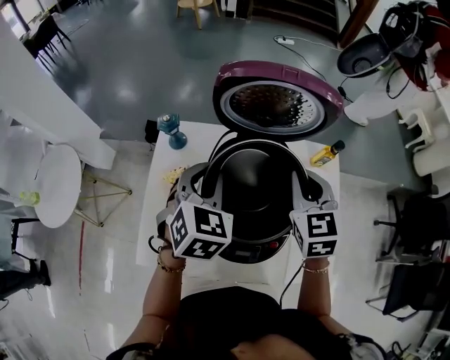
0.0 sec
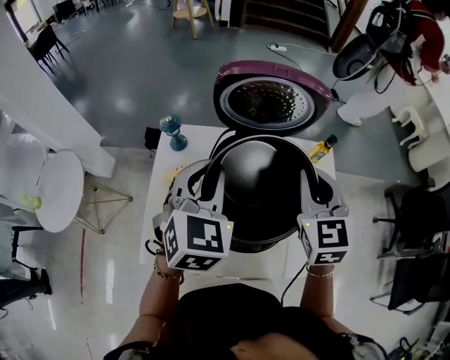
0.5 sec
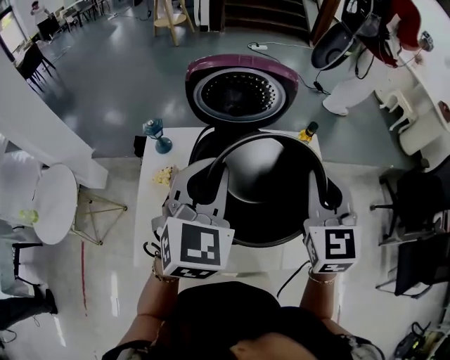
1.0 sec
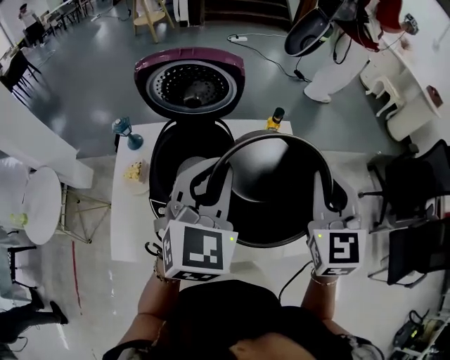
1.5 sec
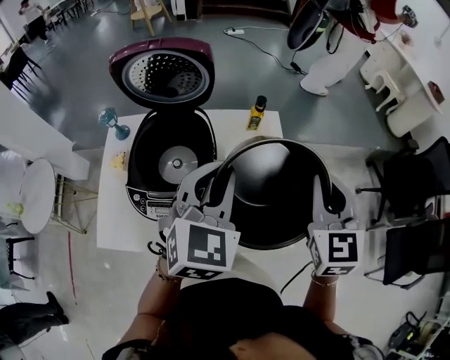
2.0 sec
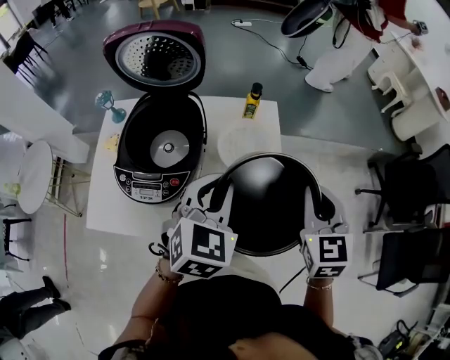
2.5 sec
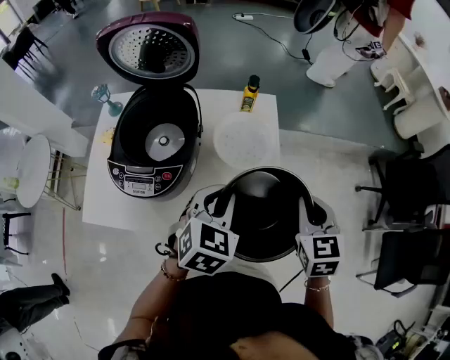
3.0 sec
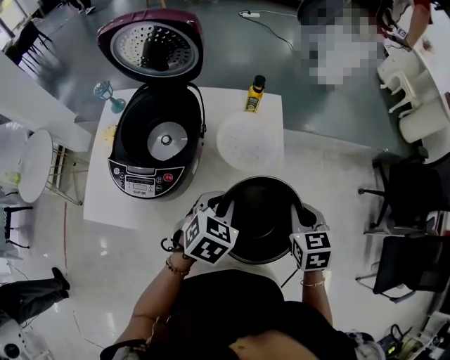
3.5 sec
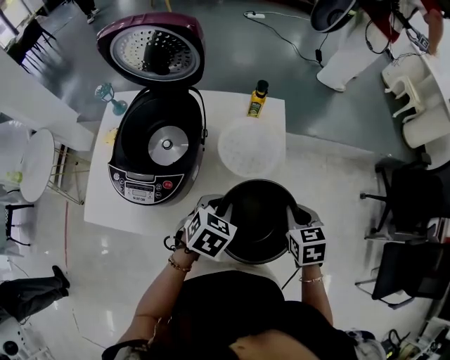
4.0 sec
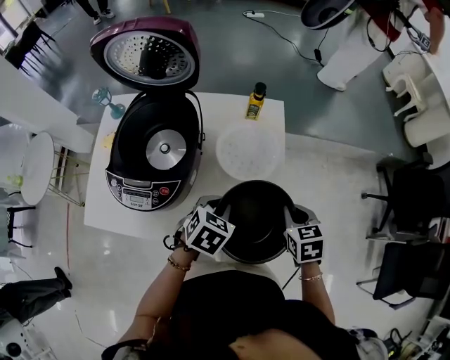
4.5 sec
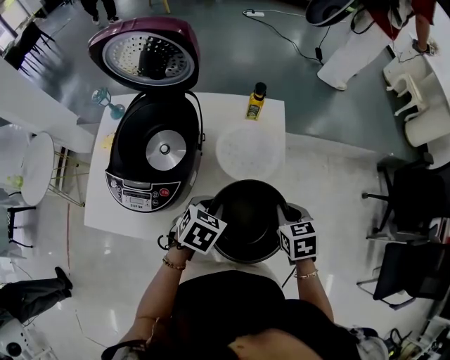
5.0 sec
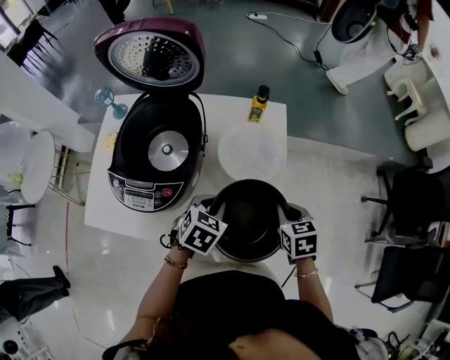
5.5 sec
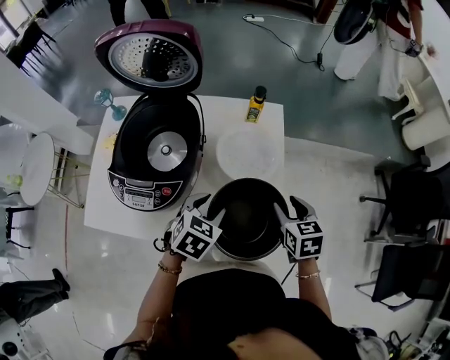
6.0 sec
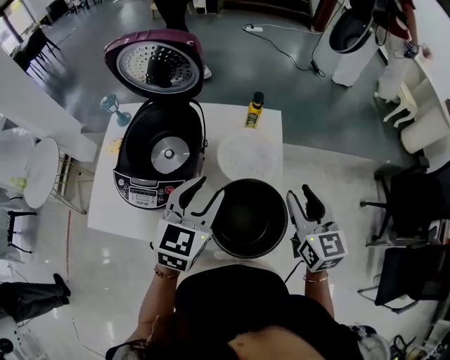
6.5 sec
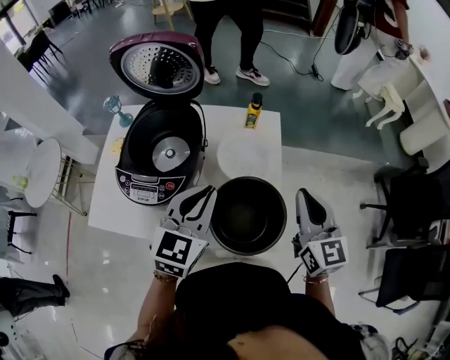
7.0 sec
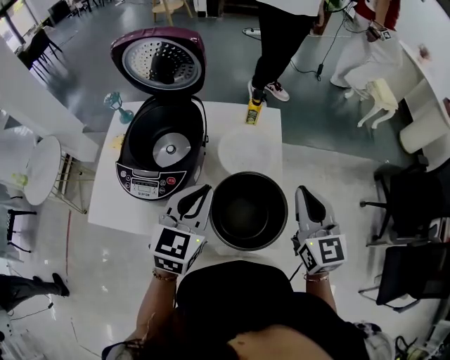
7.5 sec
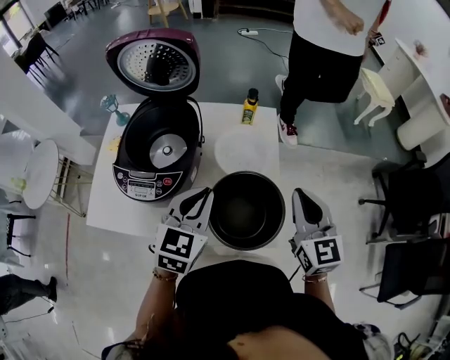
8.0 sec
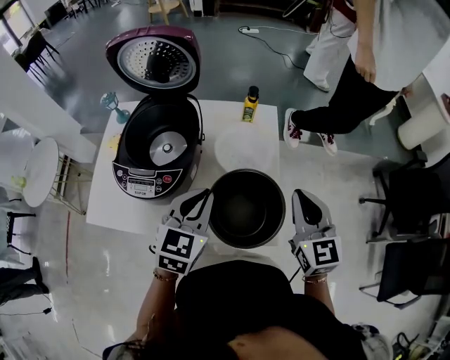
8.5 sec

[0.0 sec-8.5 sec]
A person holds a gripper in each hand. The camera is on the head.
0.0 sec to 2.0 sec: The right gripper moves to the right and backward, roughly 30 cm, while the left gripper is displaced to the right by approximately 25 cm.
2.0 sec to 4.0 sec: The grippers both shift downward by some 25 cm. The left gripper points its fingers some 30 degrees further downward, while the right gripper points its fingers some 30 degrees further downward.
4.0 sec to 6.5 sec: The two grippers go about 15 cm upward. The right gripper tips its fingers upward by some 30 degrees, and opens its fingers; the left gripper points its fingers approximately 30 degrees further upward.
6.5 sec to 8.5 sec: The left gripper ends up roughly 5 cm from where it was, and closes its fingers, while the right gripper closes up.

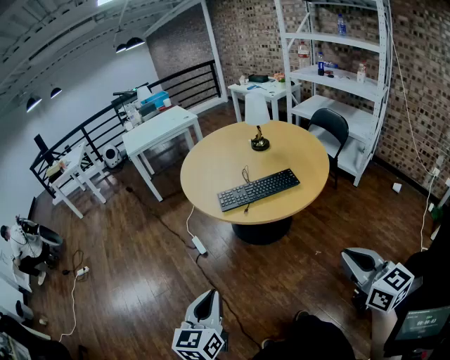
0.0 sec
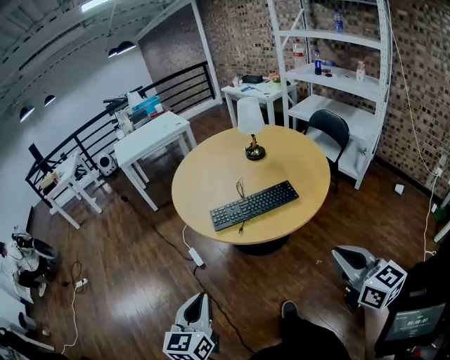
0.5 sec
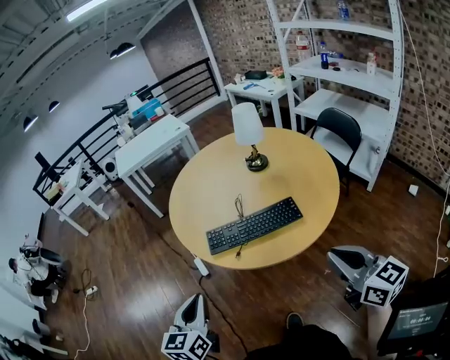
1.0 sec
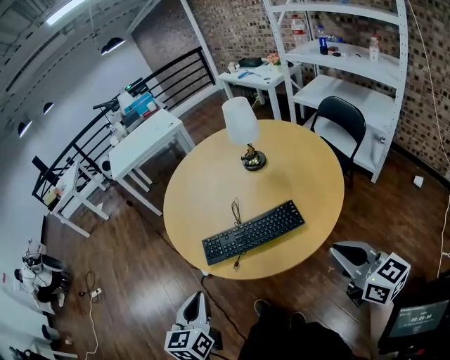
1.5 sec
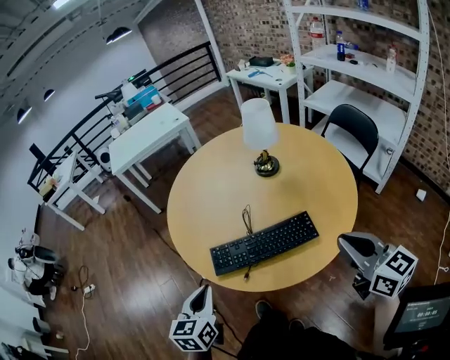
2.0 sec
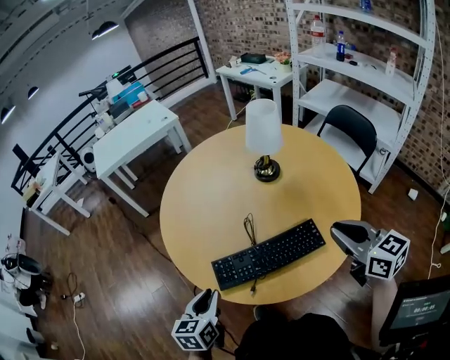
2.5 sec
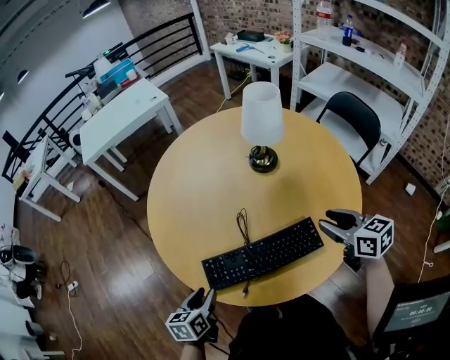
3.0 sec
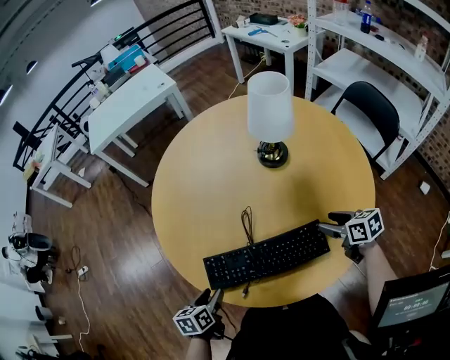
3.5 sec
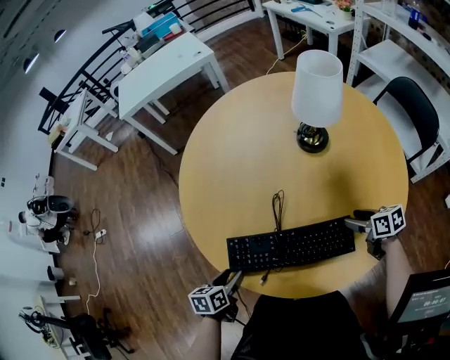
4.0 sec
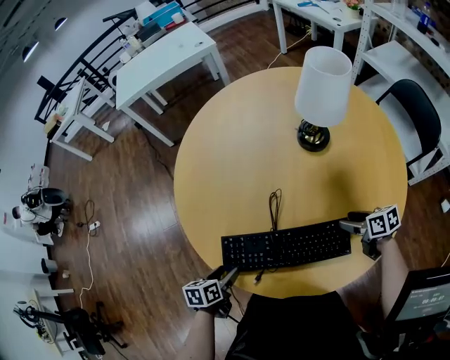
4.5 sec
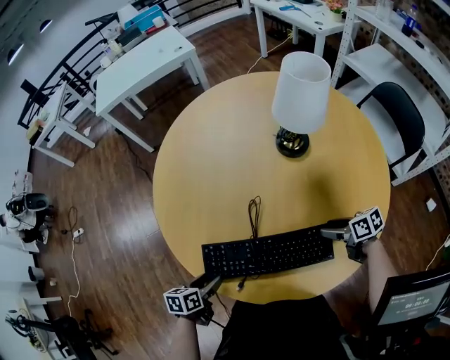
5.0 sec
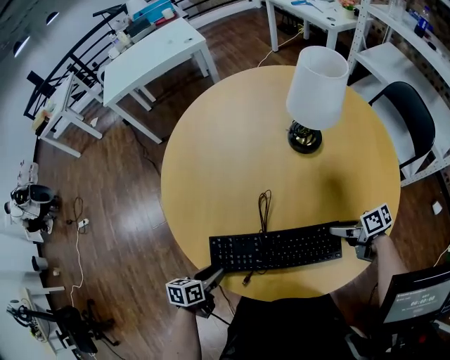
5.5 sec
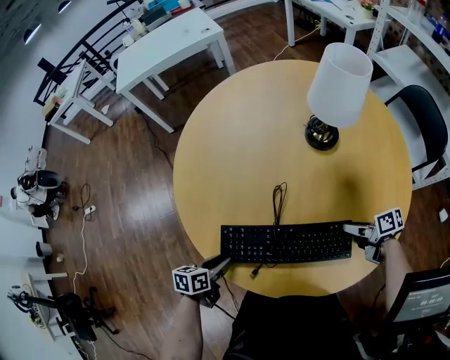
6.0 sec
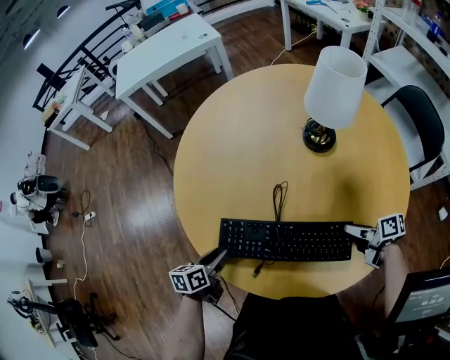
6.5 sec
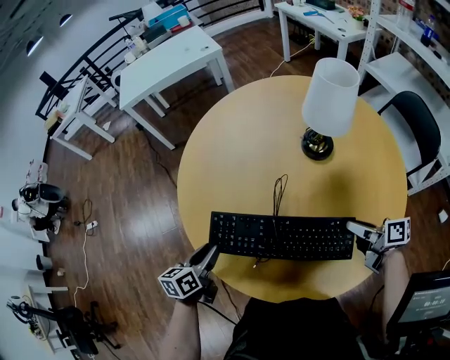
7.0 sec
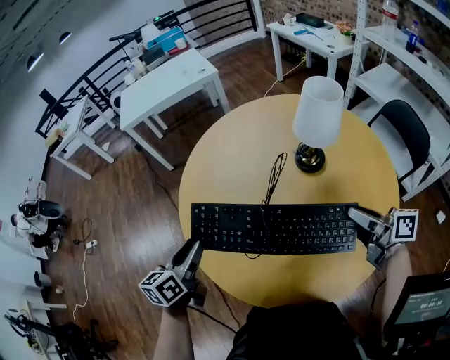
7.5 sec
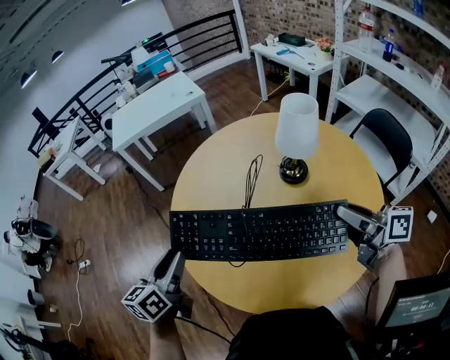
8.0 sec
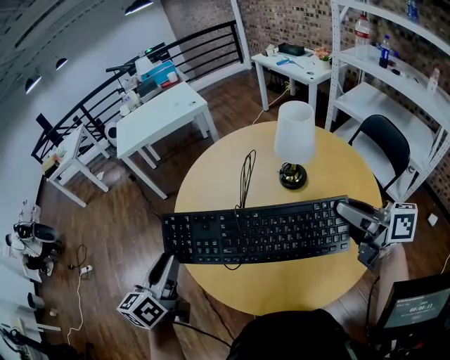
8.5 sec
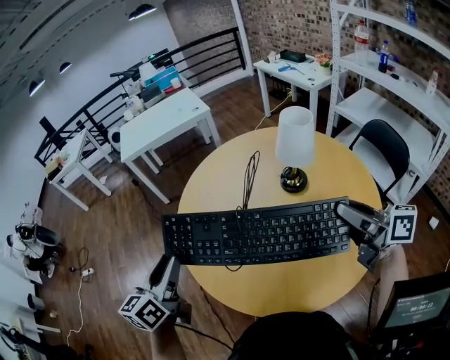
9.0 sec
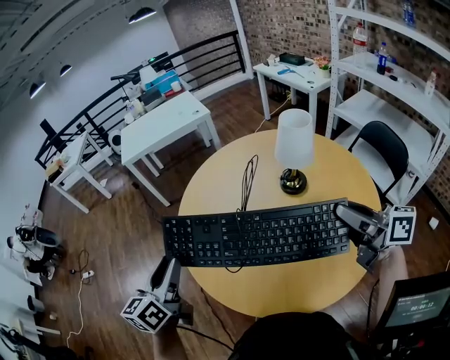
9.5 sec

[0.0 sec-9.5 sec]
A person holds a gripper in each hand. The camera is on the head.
0.0 sec to 2.0 sec: Both grippers are carried forward, about 40 cm.
2.0 sec to 4.0 sec: The right gripper shifts about 40 cm downward and forward, tips its fingers downward by roughly 30 degrees, and opens; the left gripper travels downward and forward by approximately 25 cm, rotates about 40 degrees, and opens its fingers.
4.0 sec to 5.5 sec: The right gripper swivels roughly 20 degrees.
5.5 sec to 7.5 sec: The right gripper travels upward by approximately 25 cm, and turns by about 30 degrees. The left gripper goes some 25 cm upward and forward, and changes its angle by roughly 30 degrees.
7.5 sec to 9.5 sec: The right gripper moves upward, some 15 cm. Meanwhile the left gripper heads upward and backward, covering about 15 cm.

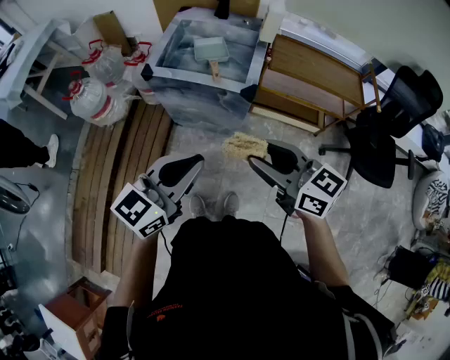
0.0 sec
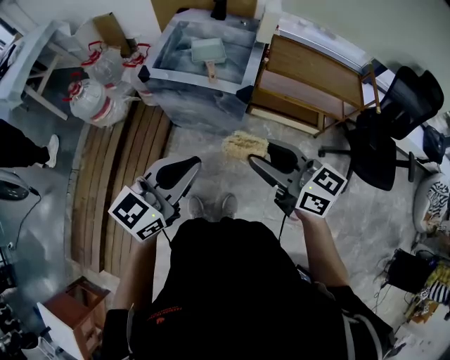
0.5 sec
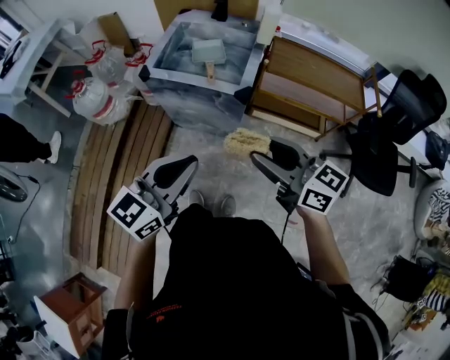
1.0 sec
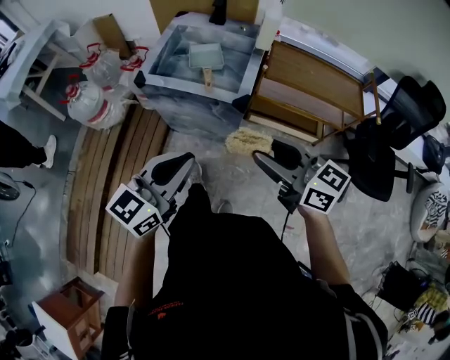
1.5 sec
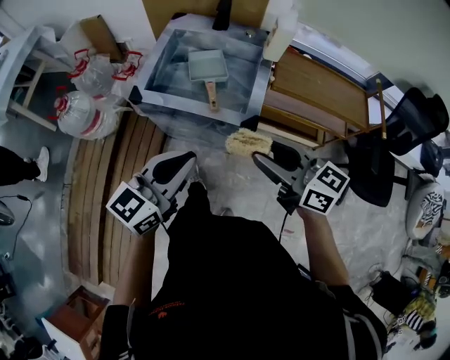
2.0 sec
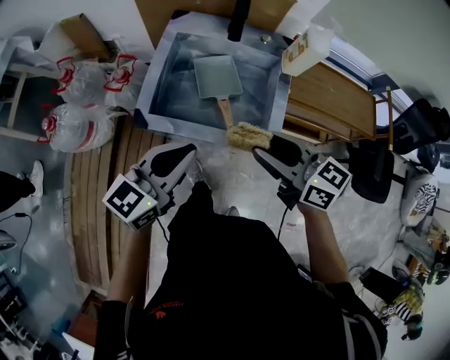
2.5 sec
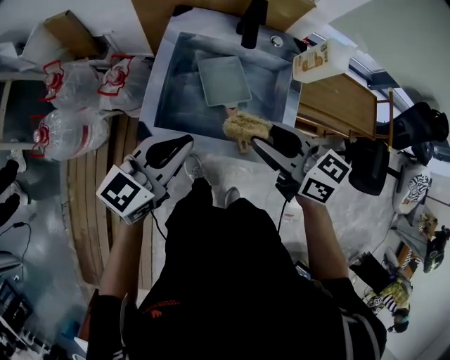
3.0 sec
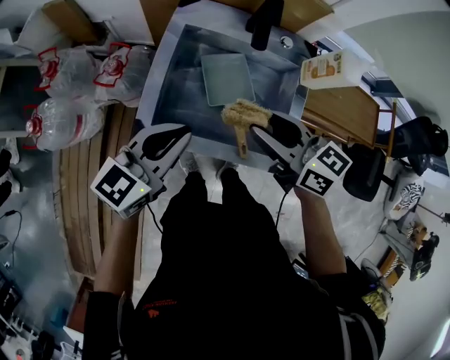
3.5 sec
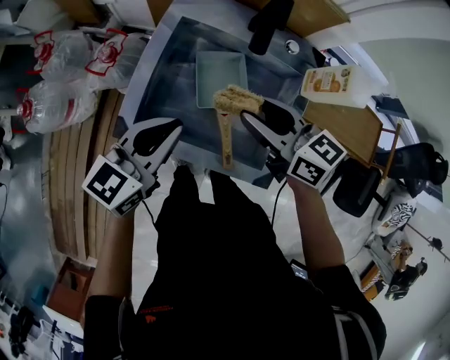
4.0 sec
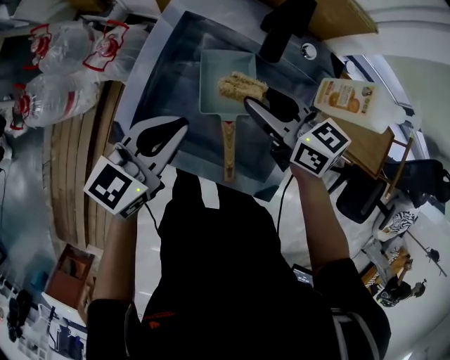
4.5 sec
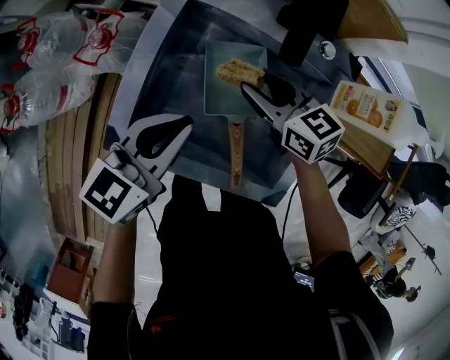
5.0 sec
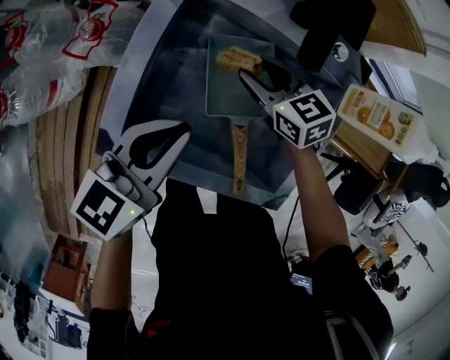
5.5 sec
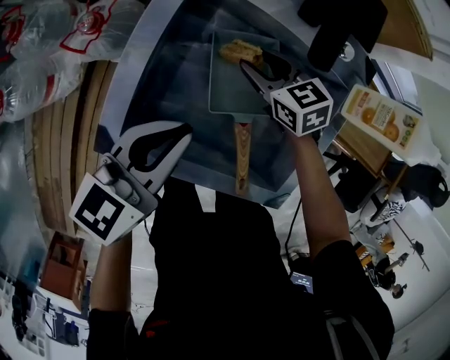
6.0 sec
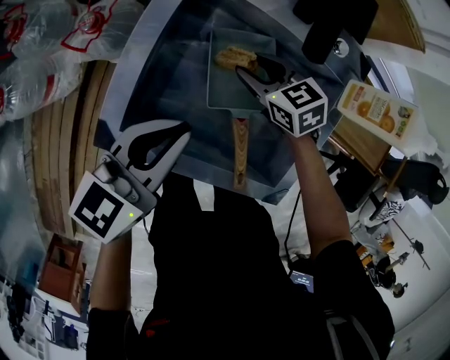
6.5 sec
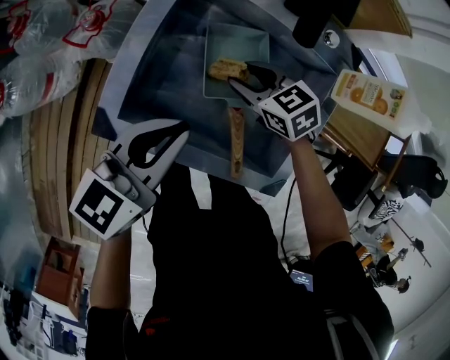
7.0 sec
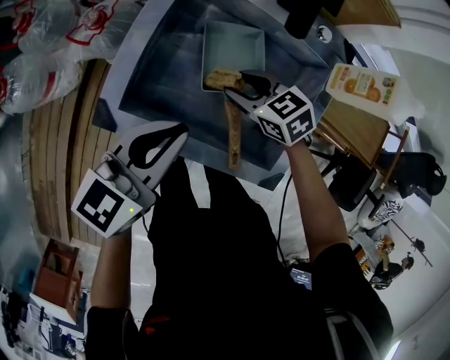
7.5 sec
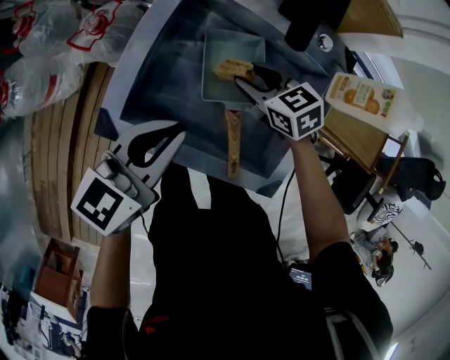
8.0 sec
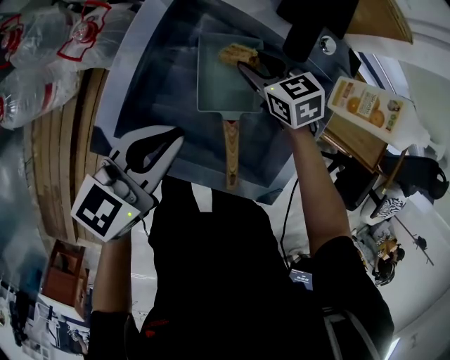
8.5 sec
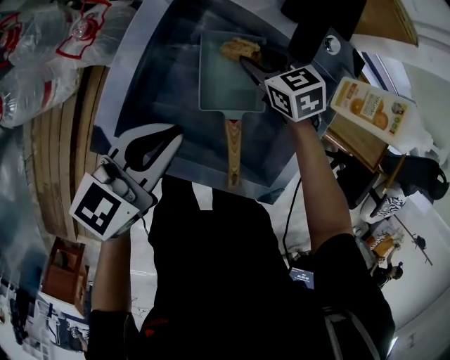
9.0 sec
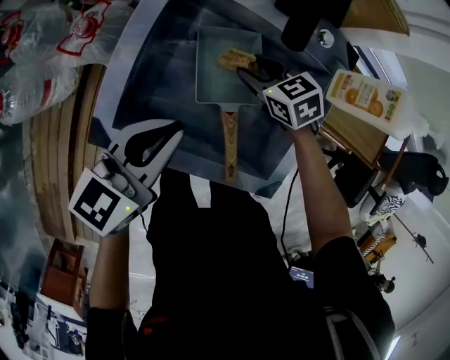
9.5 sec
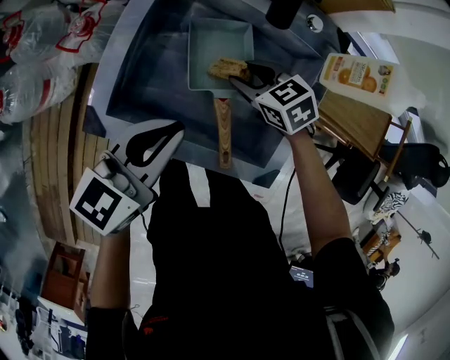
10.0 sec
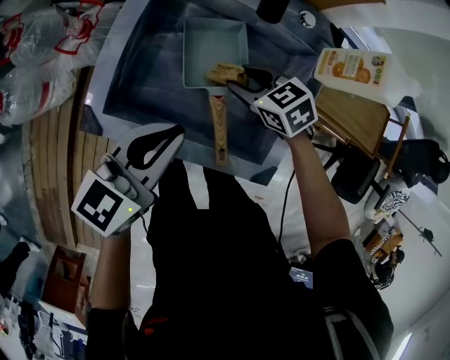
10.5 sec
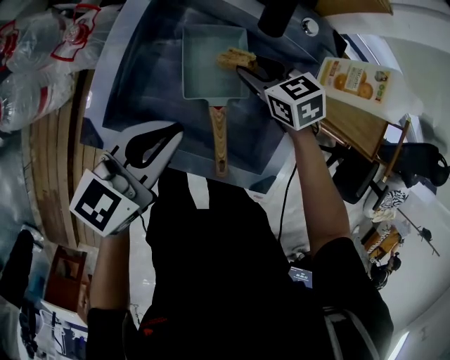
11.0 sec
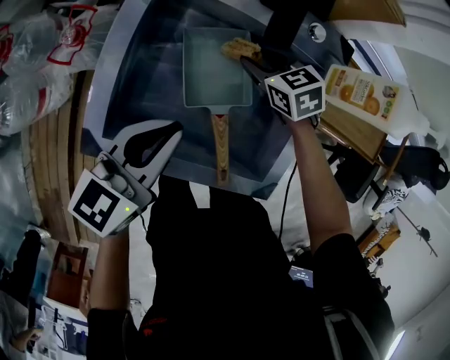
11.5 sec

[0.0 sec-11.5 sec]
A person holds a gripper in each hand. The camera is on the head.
0.0 sec to 2.0 sec: Both grippers move forward, about 15 cm.
2.0 sec to 4.0 sec: The grippers both shift forward by about 30 cm.
4.0 sec to 6.0 sec: The right gripper heads downward and forward, covering roughly 25 cm, and rotates roughly 30 degrees. Meanwhile the left gripper travels downward by approximately 10 cm.
6.0 sec to 7.5 sec: The left gripper heads backward, covering about 5 cm; the right gripper shifts roughly 10 cm backward.
7.5 sec to 9.5 sec: The right gripper goes about 5 cm forward.
9.5 sec to 11.5 sec: The right gripper goes backward and returns, some 5 cm each way.
